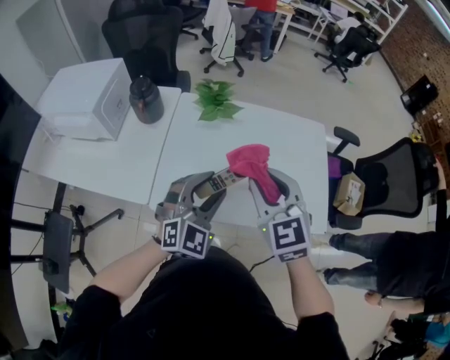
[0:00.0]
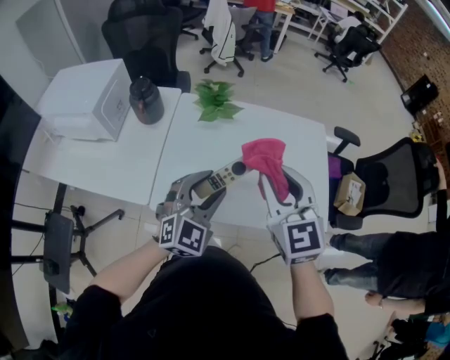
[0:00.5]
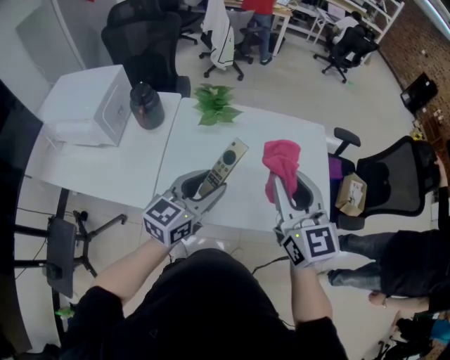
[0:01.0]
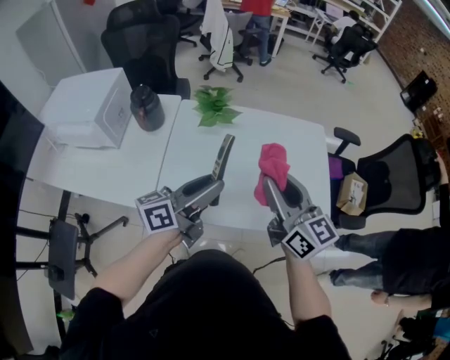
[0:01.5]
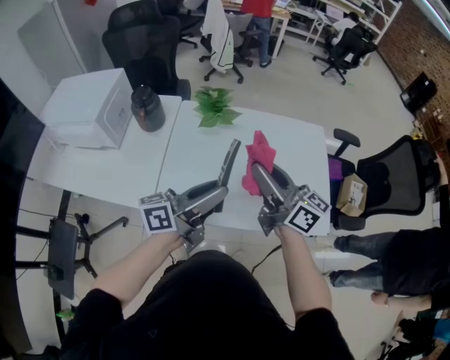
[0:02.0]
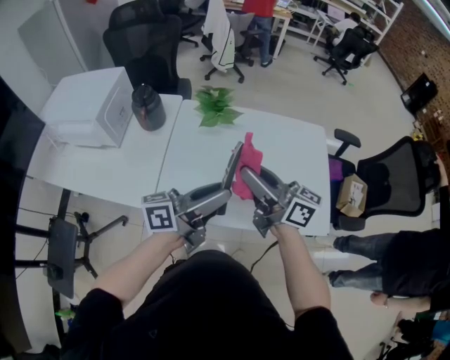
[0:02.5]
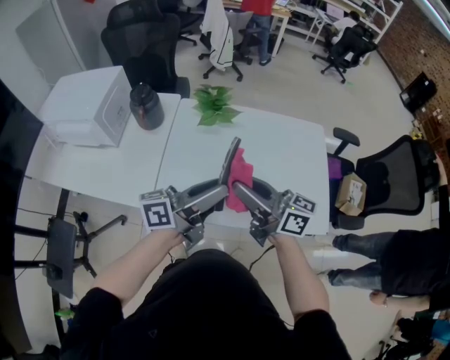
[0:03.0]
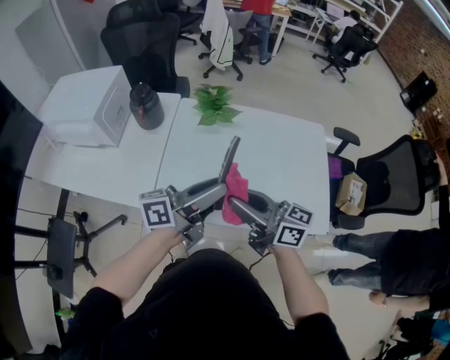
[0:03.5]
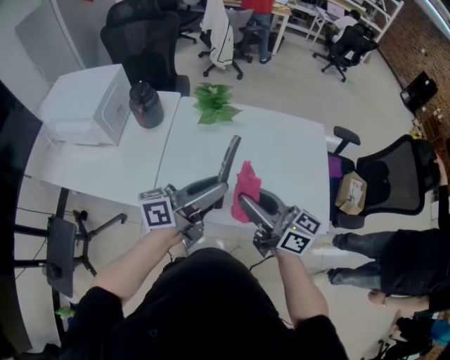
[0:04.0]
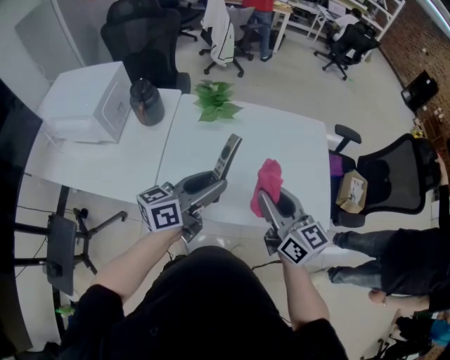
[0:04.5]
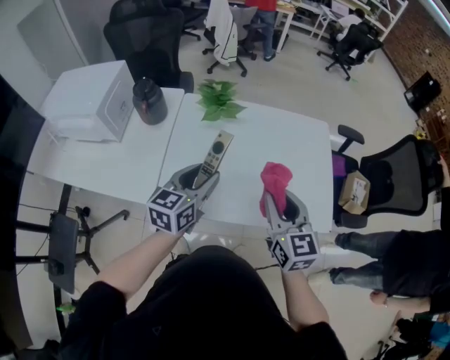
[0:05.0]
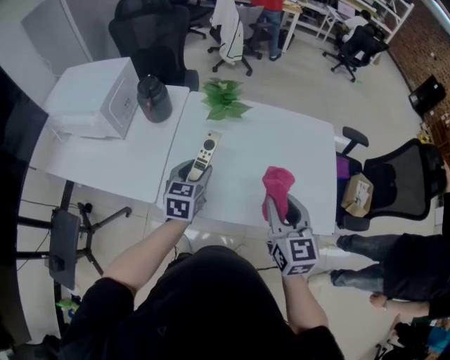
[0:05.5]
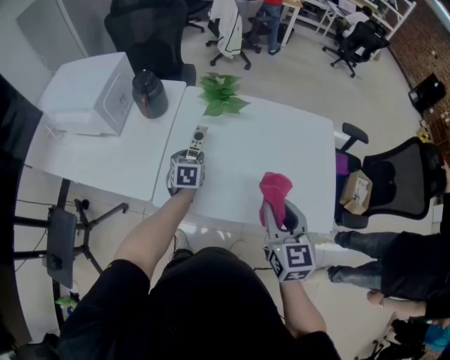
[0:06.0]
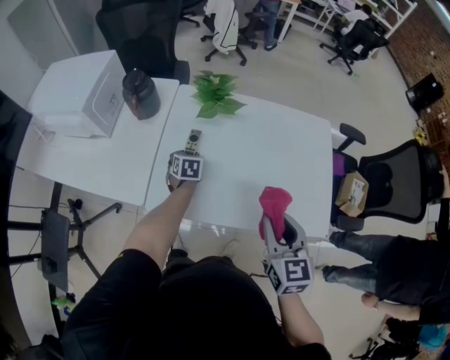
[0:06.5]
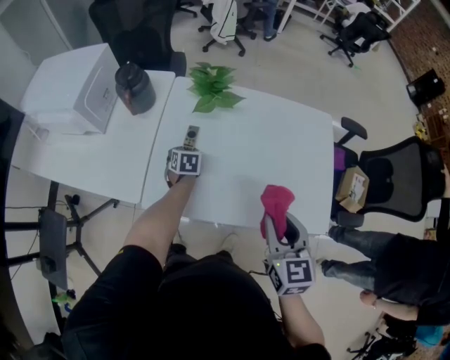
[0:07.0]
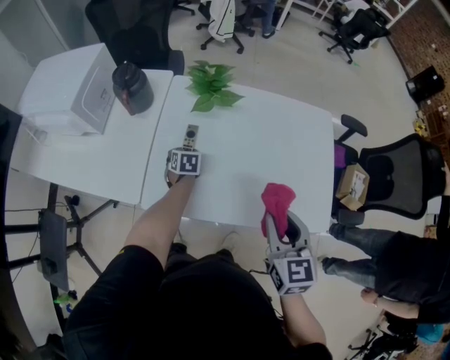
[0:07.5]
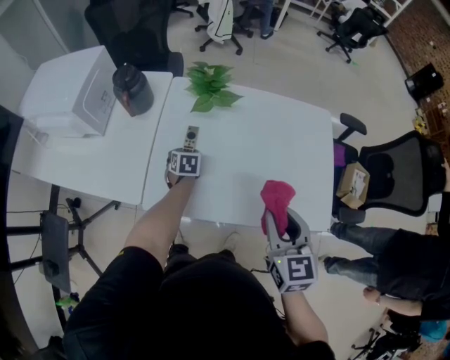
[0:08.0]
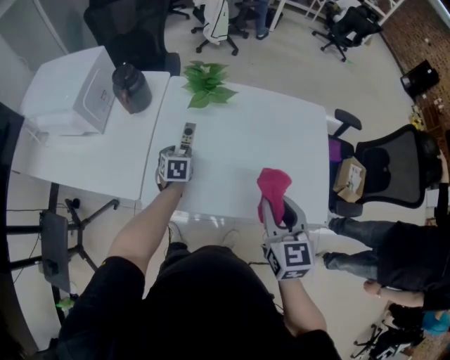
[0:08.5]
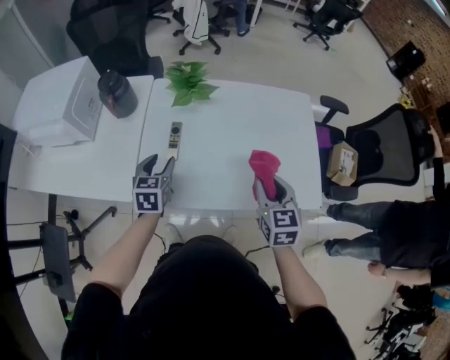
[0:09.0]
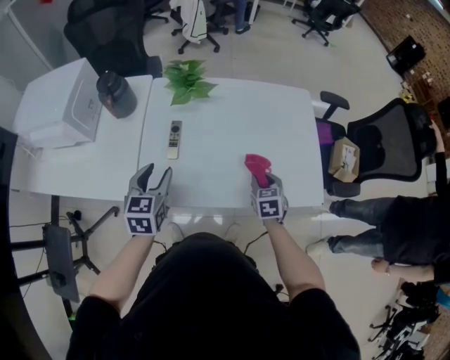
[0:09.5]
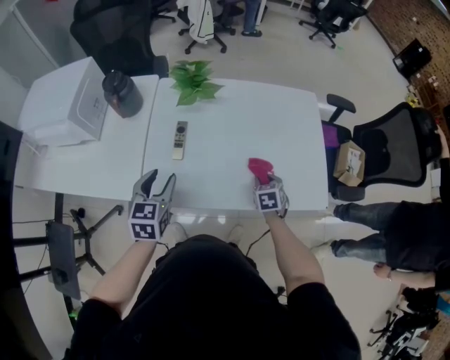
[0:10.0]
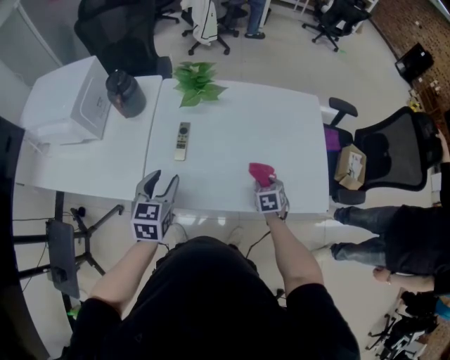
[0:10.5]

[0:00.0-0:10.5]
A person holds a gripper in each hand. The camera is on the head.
0.0 to 2.0 s: The left gripper twists approximately 80 degrees counterclockwise, seen from behind. Meanwhile the right gripper points its fingers roughly 30 degrees further upward.
2.0 to 4.0 s: The right gripper goes about 5 cm backward.
4.0 to 6.5 s: The left gripper shifts approximately 35 cm downward and forward, and points its fingers approximately 70 degrees further downward. The right gripper travels to the right and downward by approximately 10 cm, and turns by some 50 degrees.
6.5 to 8.5 s: The grippers stay close to where they were, moving slightly.
8.5 to 10.5 s: The left gripper travels upward and backward by some 20 cm, and turns by about 20 degrees. The right gripper moves downward, roughly 25 cm, and tips its fingers downward by some 30 degrees.

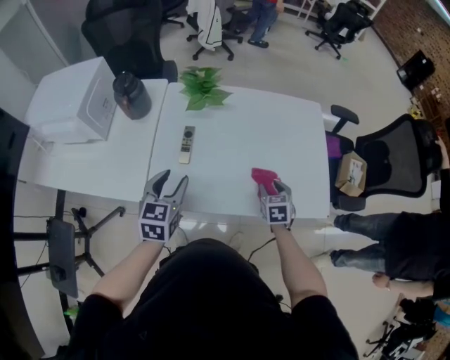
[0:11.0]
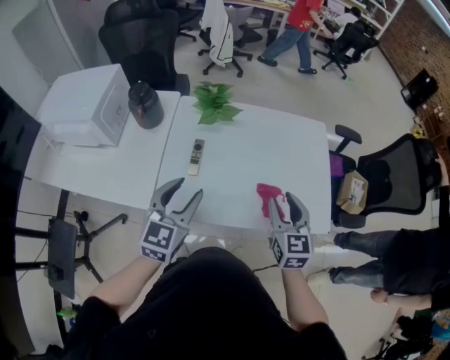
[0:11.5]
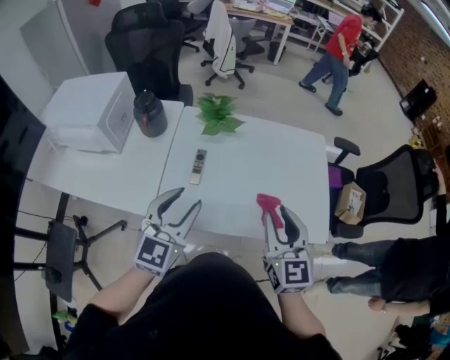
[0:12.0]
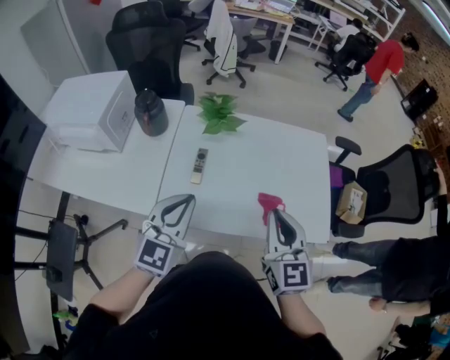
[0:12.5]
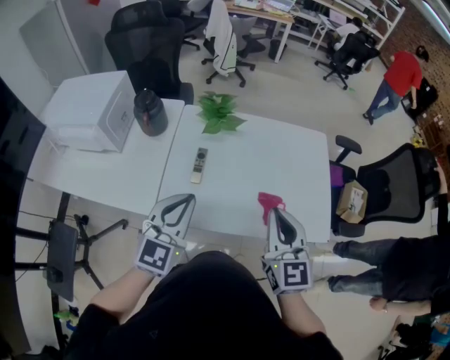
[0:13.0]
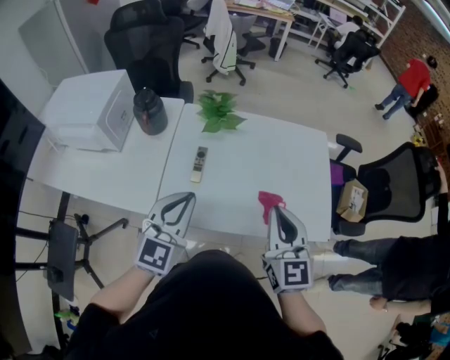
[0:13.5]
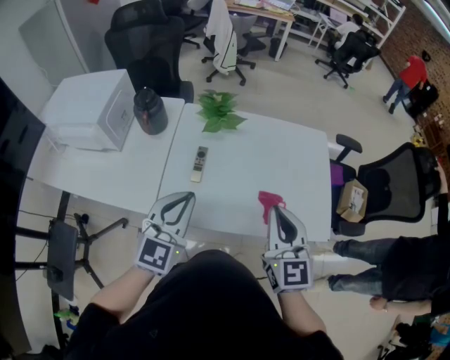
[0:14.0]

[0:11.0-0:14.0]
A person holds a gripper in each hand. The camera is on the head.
11.0 to 12.5 s: The left gripper goes some 10 cm upward, changes its angle by approximately 30 degrees, and closes its fingers. The right gripper shifts approximately 30 cm upward, angles its fingers upward, by roughly 40 degrees, and closes up.
12.5 to 14.0 s: Both grippers stay put.

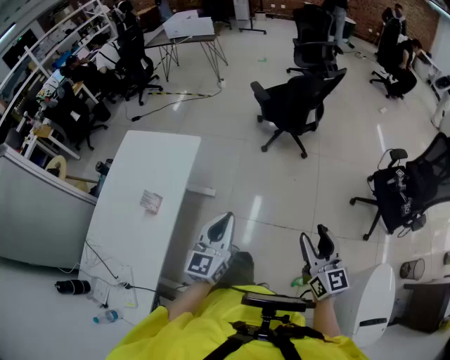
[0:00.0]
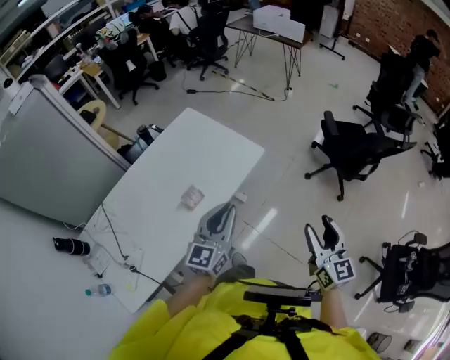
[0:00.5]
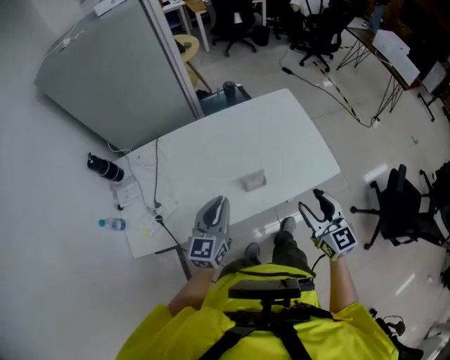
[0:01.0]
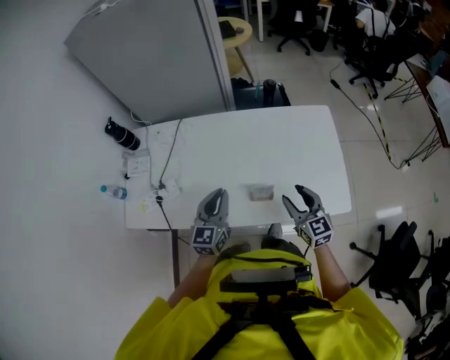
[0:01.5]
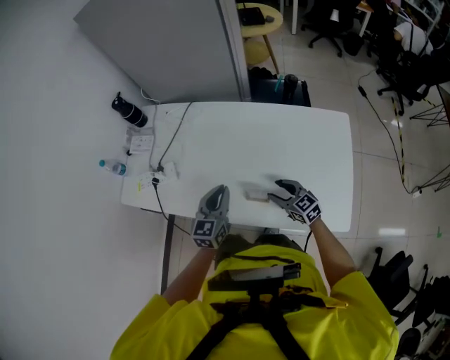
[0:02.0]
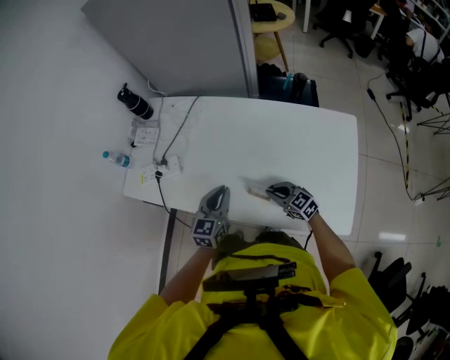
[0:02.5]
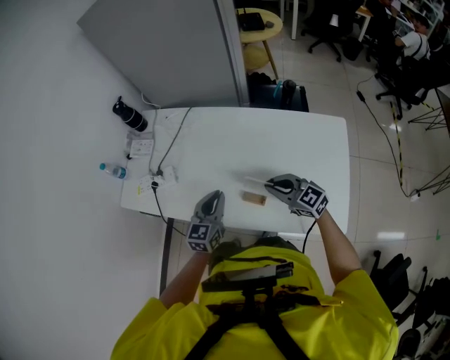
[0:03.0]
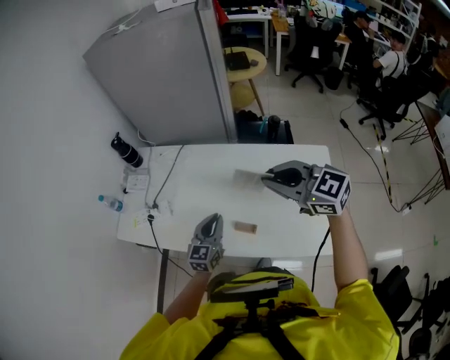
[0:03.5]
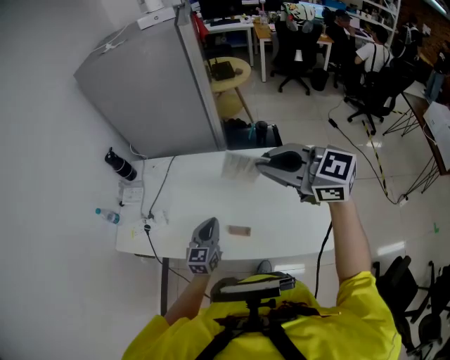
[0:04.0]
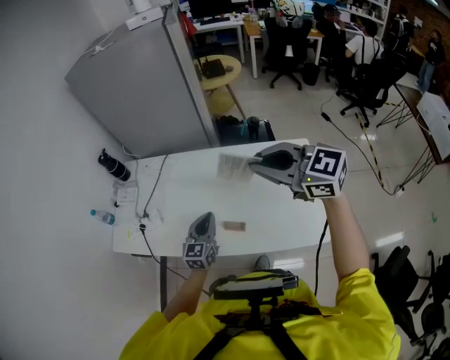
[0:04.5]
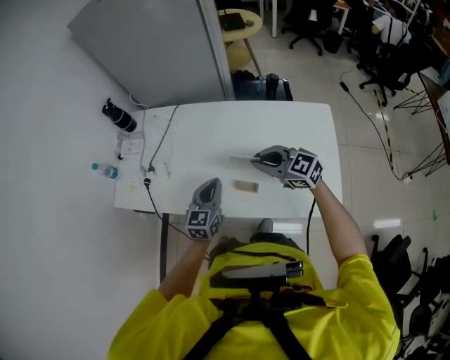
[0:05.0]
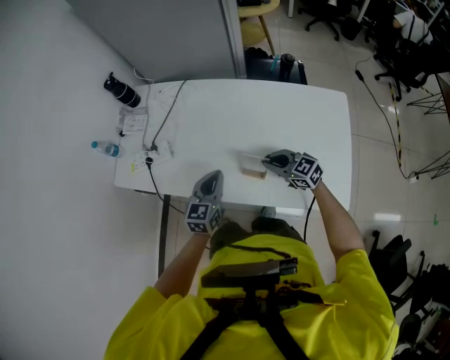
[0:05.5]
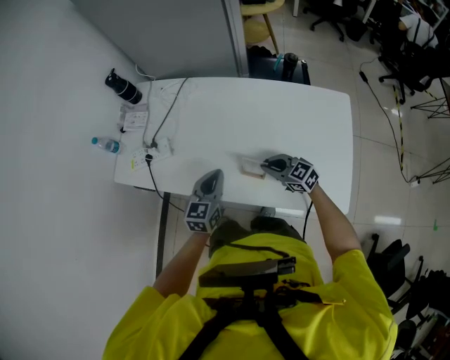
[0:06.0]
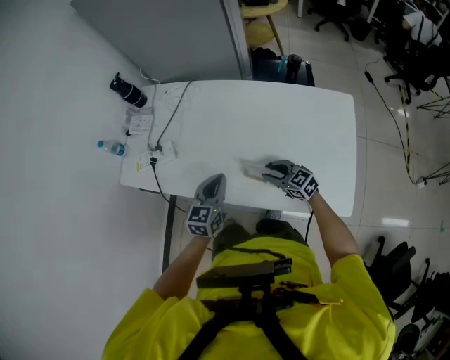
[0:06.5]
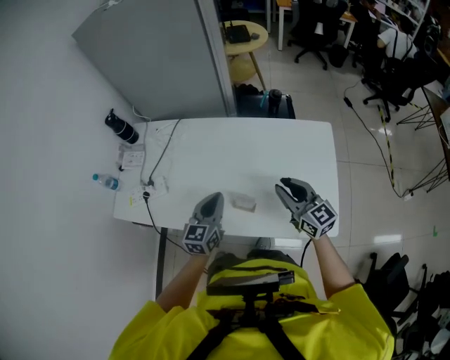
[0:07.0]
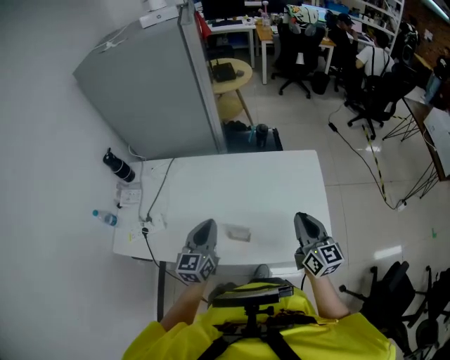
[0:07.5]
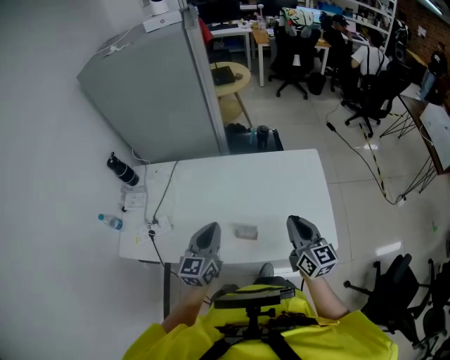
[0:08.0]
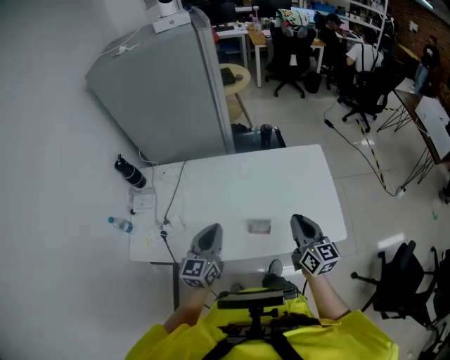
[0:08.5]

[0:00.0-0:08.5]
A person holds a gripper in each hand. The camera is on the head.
0.0 to 2.0 s: The pair of grippers is taken about 60 cm. The right gripper turns by approximately 120 degrees. Meanwhile the left gripper changes its angle by roughly 90 degrees.
2.0 to 4.0 s: The right gripper goes approximately 40 cm upward, changes its angle by approximately 20 degrees, and closes up.
4.0 to 6.5 s: The left gripper changes place by some 5 cm. The right gripper is displaced downward by about 50 cm, turns by some 20 degrees, and opens up.
6.5 to 8.5 s: The right gripper travels upward by approximately 25 cm, swivels roughly 60 degrees, and closes up. Meanwhile the left gripper goes approximately 15 cm upward.

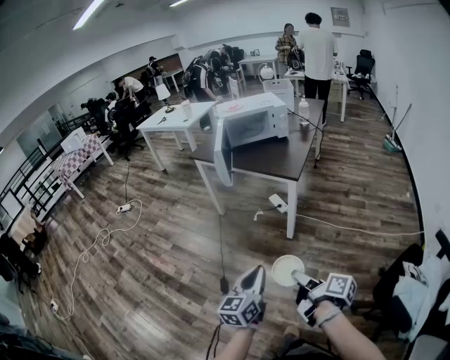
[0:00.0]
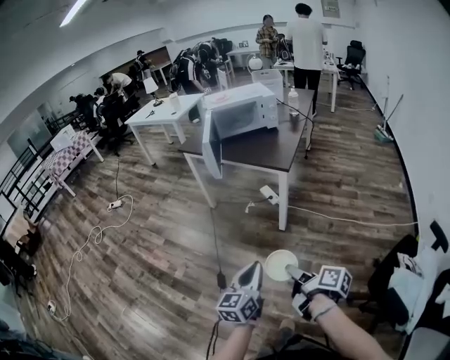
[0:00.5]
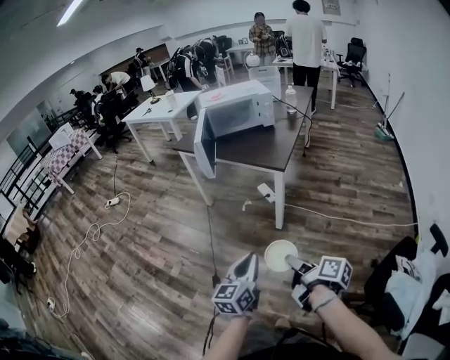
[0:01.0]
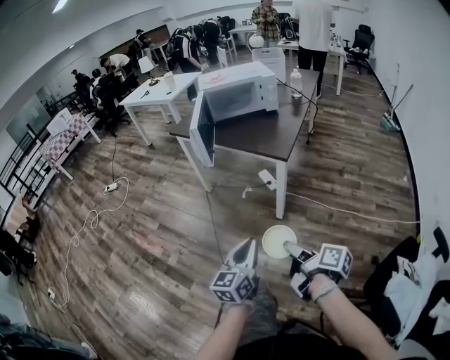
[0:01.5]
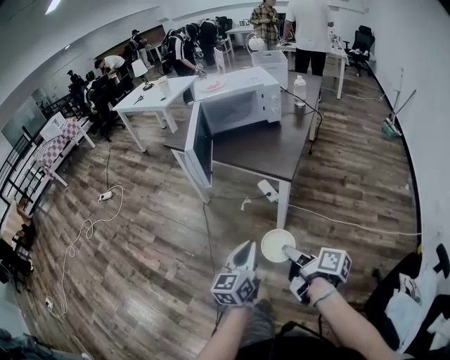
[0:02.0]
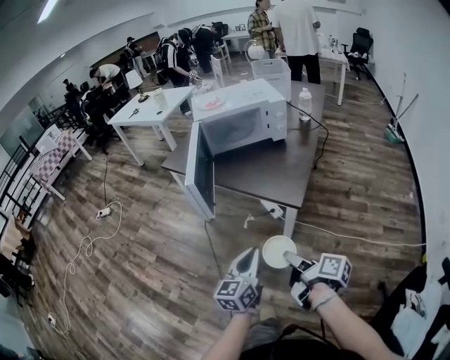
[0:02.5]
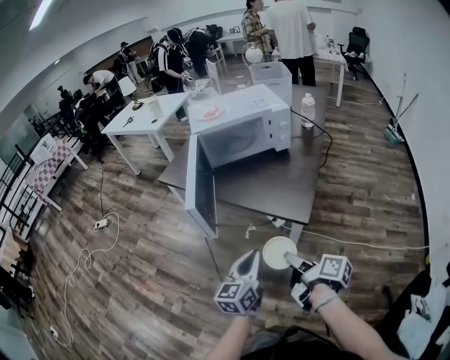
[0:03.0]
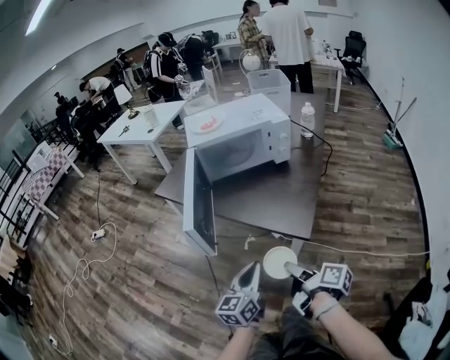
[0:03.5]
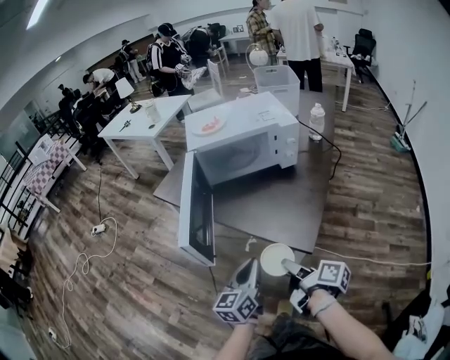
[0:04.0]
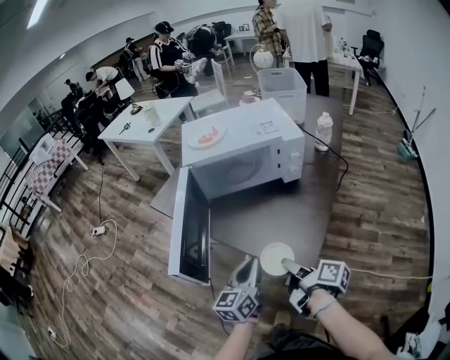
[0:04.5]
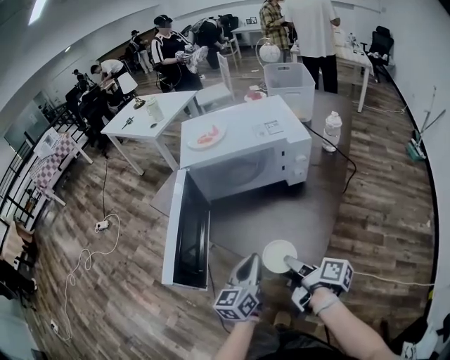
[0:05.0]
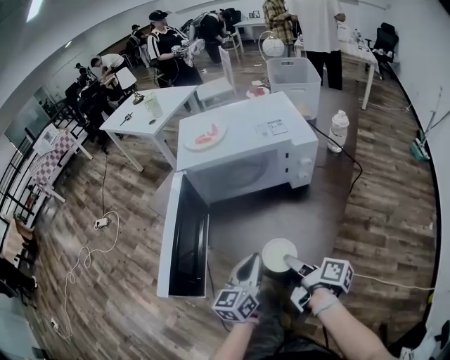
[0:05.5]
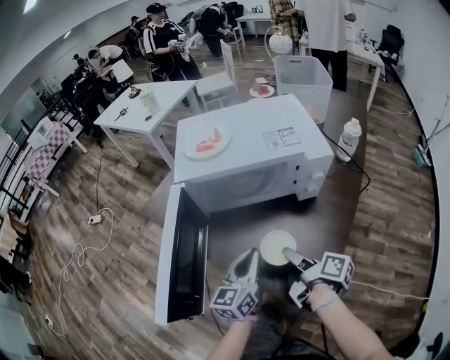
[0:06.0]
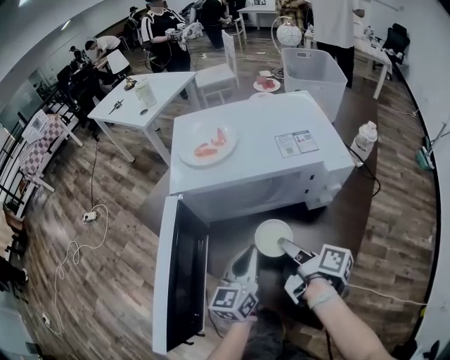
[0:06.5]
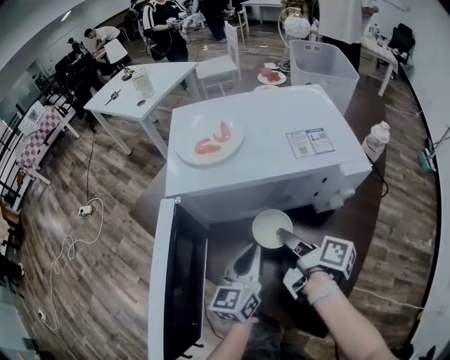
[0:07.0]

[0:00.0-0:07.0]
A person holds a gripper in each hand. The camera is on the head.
0.0 to 2.0 s: Both grippers move forward, roughly 20 cm.
2.0 to 3.5 s: Both grippers travel together forward, about 20 cm.
3.5 to 5.0 s: The two grippers go about 20 cm forward.
5.0 to 7.0 s: The two grippers go roughly 20 cm forward.
